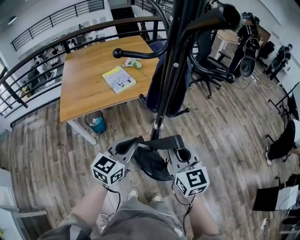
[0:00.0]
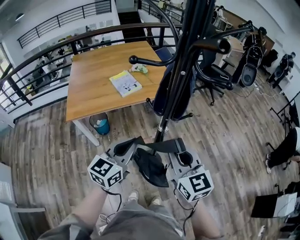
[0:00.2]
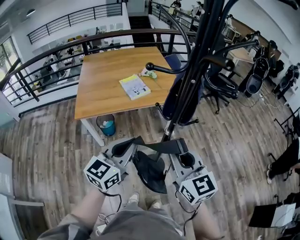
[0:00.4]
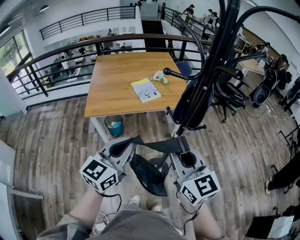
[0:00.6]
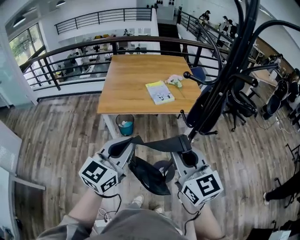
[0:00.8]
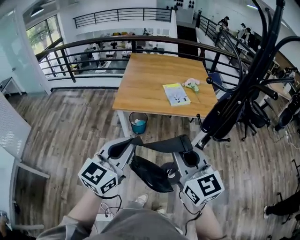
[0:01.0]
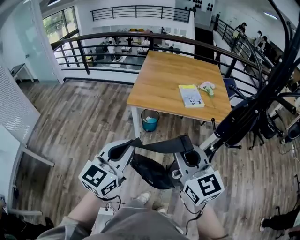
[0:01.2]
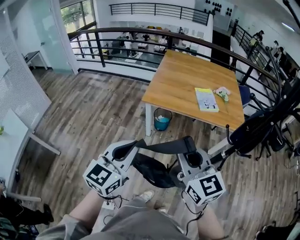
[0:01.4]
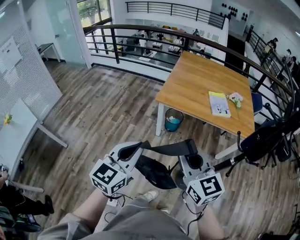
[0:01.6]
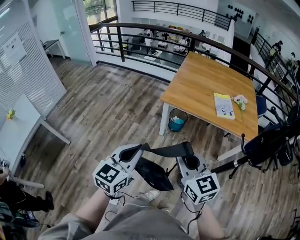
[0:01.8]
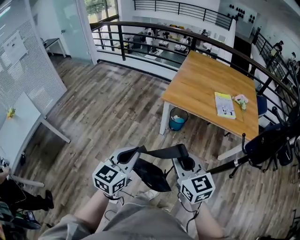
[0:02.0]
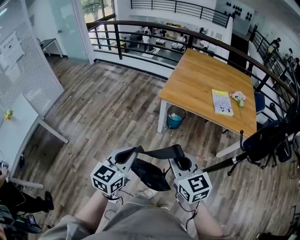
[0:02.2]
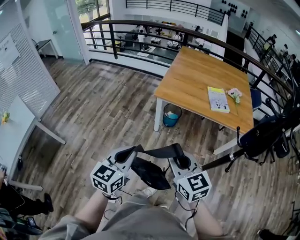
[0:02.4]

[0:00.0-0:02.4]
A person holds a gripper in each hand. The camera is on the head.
0:00.0 to 0:01.2: The left gripper moves some 30 cm, and changes its angle by approximately 40 degrees. The right gripper changes place by about 25 cm, and changes its angle by roughly 40 degrees.
0:01.2 to 0:02.4: Both grippers move downward and to the left, about 15 cm. The left gripper turns by roughly 20 degrees.

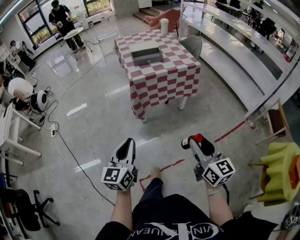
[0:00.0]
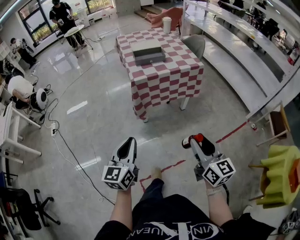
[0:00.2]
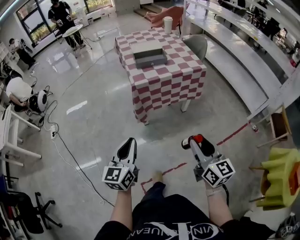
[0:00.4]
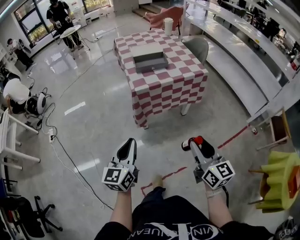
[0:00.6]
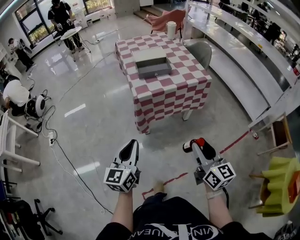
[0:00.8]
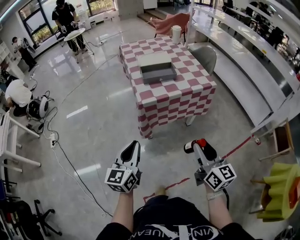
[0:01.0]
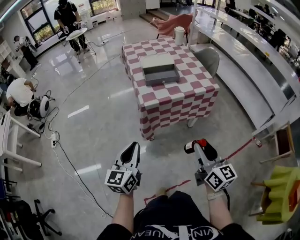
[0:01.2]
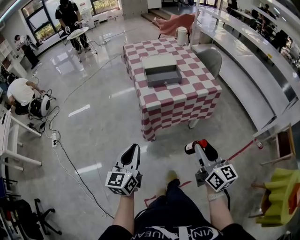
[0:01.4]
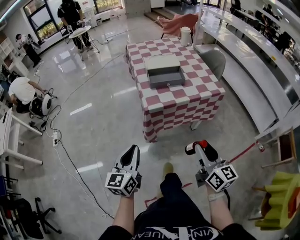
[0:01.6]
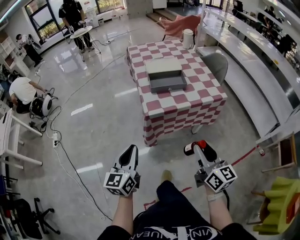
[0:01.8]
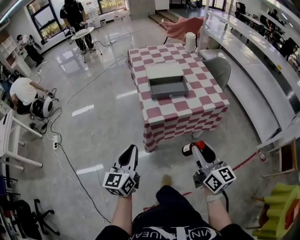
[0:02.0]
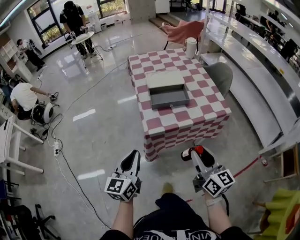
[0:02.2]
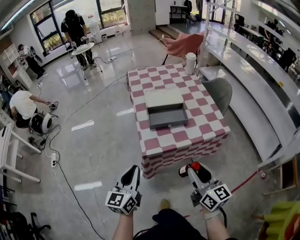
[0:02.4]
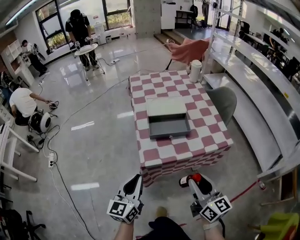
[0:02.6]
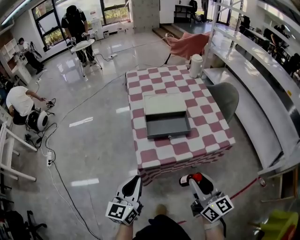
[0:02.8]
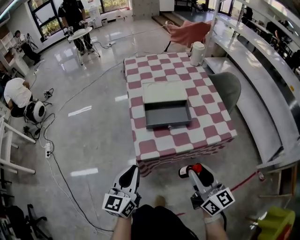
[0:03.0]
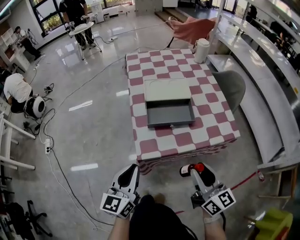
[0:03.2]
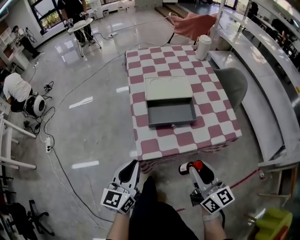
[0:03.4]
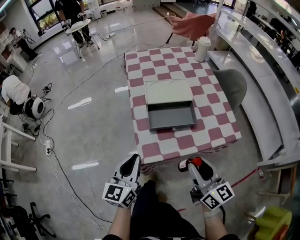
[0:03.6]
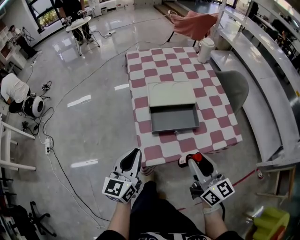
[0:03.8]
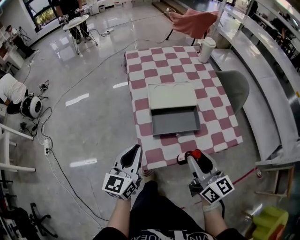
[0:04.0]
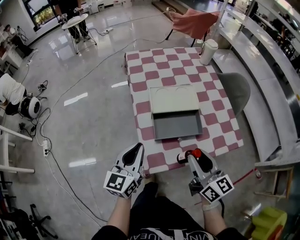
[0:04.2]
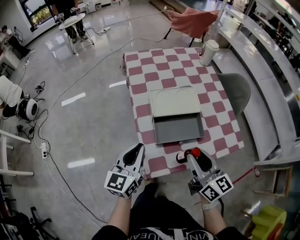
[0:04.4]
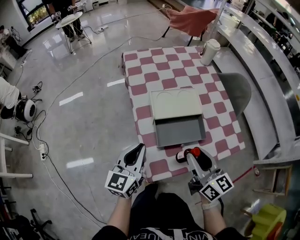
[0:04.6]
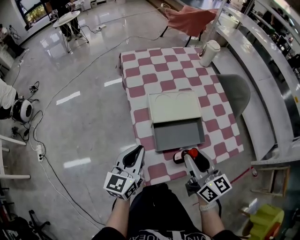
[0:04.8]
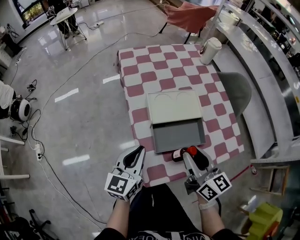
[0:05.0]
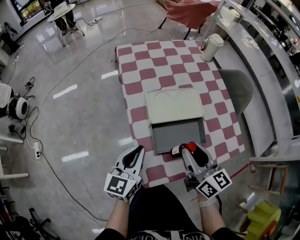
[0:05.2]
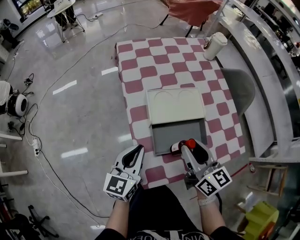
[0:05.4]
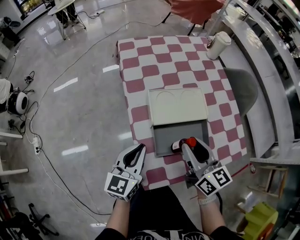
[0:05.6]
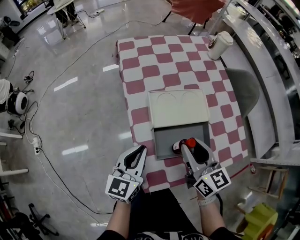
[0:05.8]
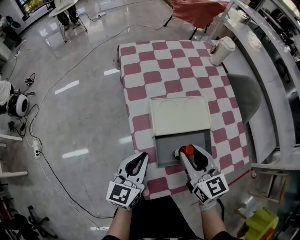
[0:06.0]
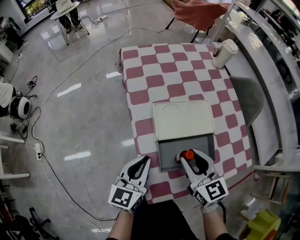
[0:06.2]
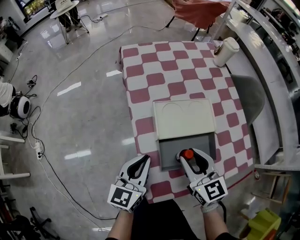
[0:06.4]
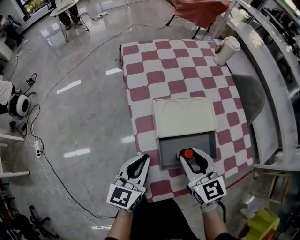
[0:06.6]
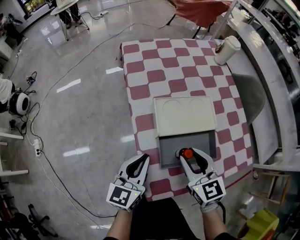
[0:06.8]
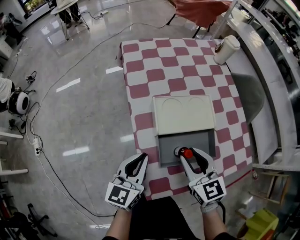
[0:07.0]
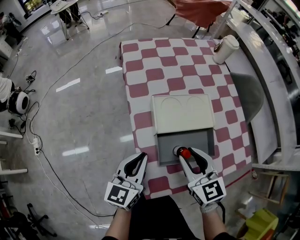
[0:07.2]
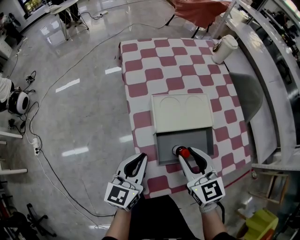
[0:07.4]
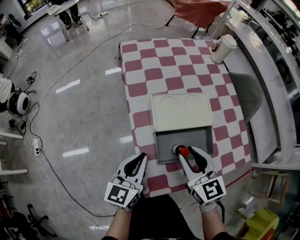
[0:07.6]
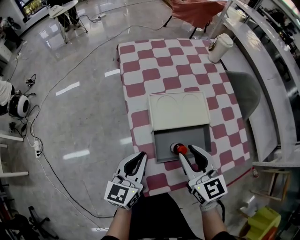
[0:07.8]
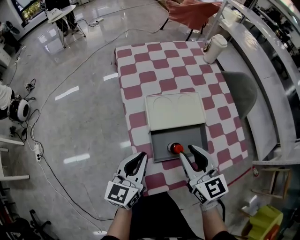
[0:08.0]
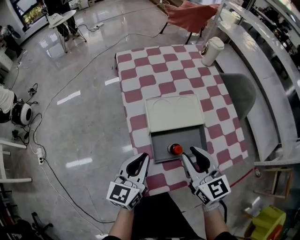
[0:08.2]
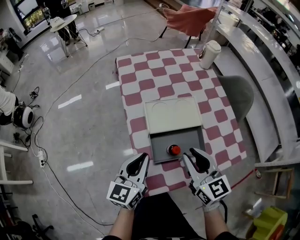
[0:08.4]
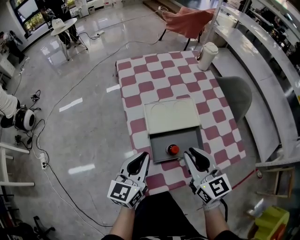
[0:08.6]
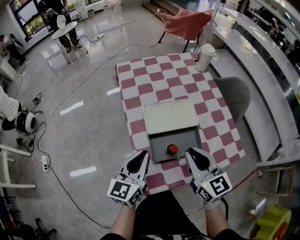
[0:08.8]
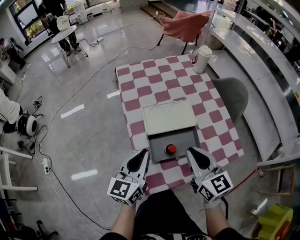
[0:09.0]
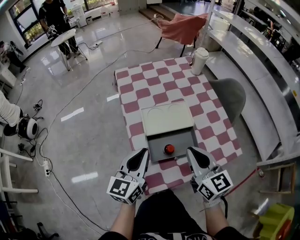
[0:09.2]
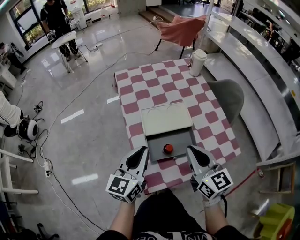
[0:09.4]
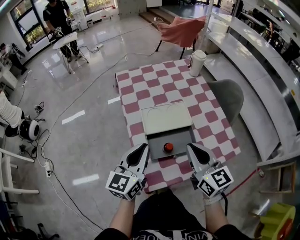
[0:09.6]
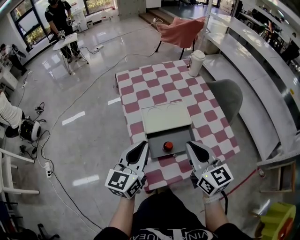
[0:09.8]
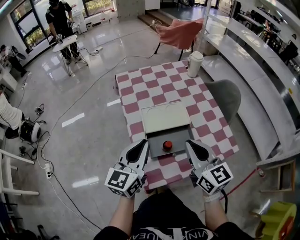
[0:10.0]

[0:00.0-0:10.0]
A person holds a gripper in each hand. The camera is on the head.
0:00.0 to 0:01.4: Both grippers move forward, roughly 25 cm.
0:01.4 to 0:02.8: The two grippers go about 20 cm forward.
0:02.8 to 0:04.2: Both grippers move forward, roughly 15 cm.
0:04.2 to 0:05.8: The right gripper shifts some 15 cm forward; the left gripper goes approximately 10 cm forward and downward.
0:05.8 to 0:07.2: The right gripper rotates roughly 20 degrees.
0:07.2 to 0:08.6: The two grippers go some 5 cm upward.
0:08.6 to 0:10.0: Both grippers move upward, roughly 10 cm.

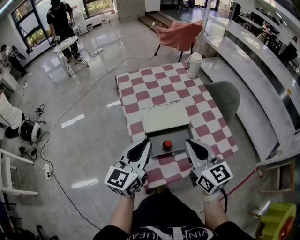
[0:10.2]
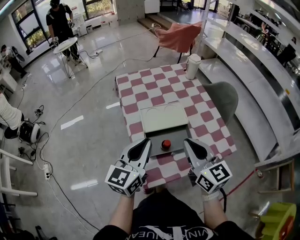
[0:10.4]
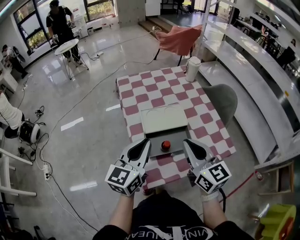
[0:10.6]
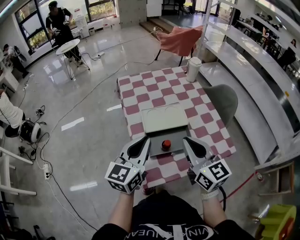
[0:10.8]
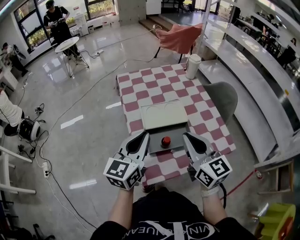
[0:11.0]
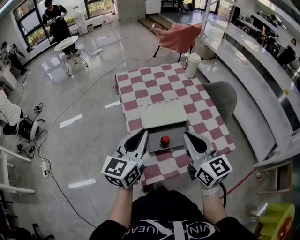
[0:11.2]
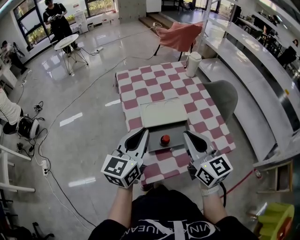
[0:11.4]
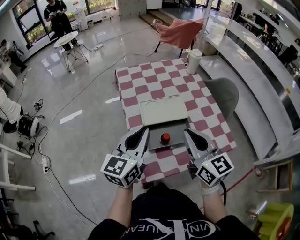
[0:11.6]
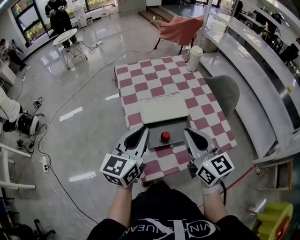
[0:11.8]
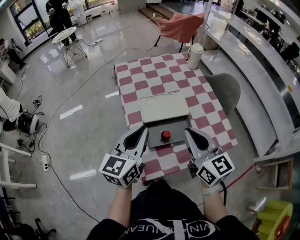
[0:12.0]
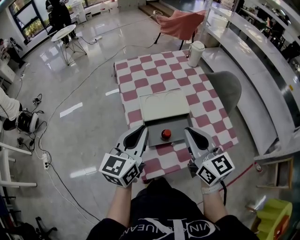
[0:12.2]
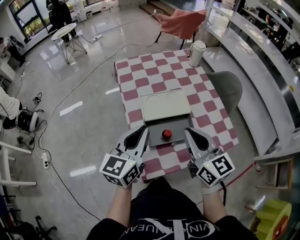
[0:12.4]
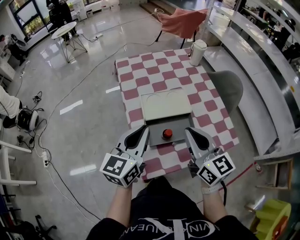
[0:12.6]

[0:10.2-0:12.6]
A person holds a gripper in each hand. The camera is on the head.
0:10.2 to 0:12.6: There are only small adjustments of the grippers.

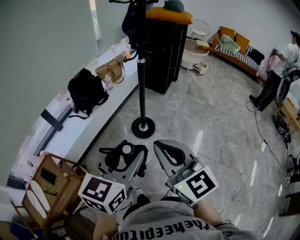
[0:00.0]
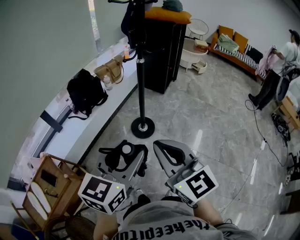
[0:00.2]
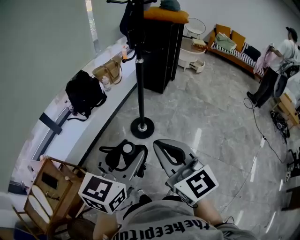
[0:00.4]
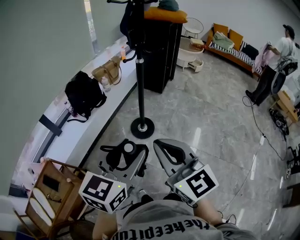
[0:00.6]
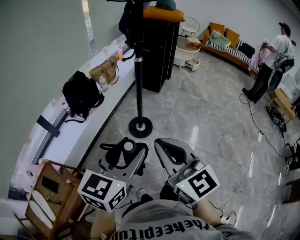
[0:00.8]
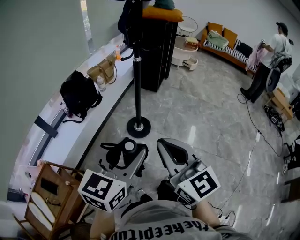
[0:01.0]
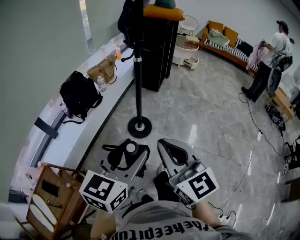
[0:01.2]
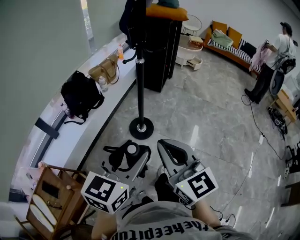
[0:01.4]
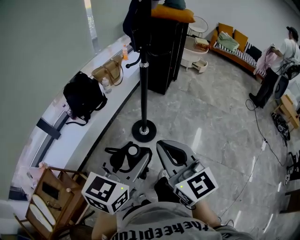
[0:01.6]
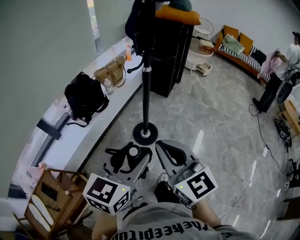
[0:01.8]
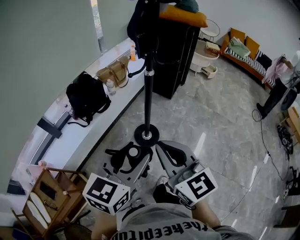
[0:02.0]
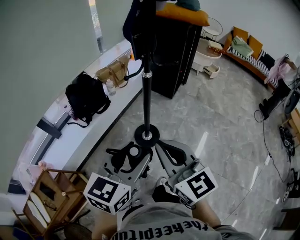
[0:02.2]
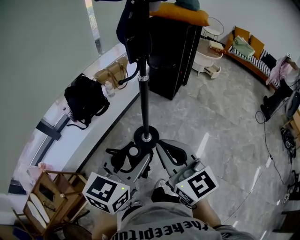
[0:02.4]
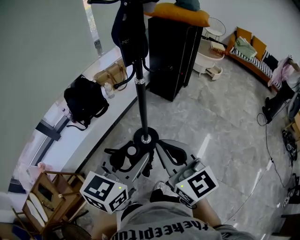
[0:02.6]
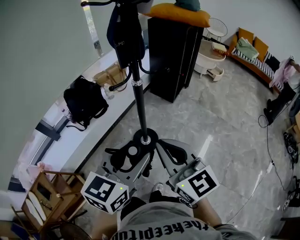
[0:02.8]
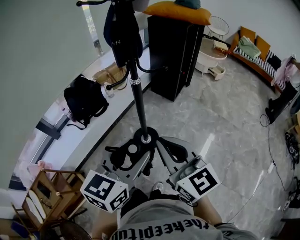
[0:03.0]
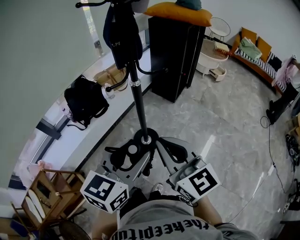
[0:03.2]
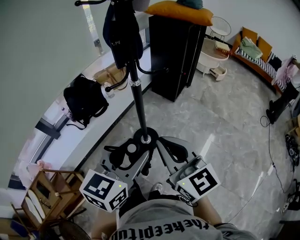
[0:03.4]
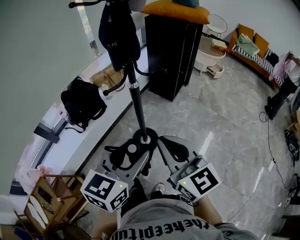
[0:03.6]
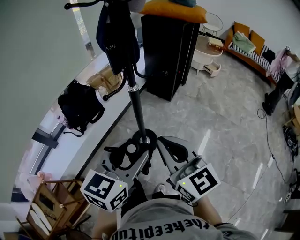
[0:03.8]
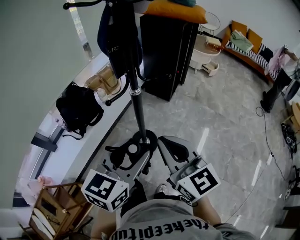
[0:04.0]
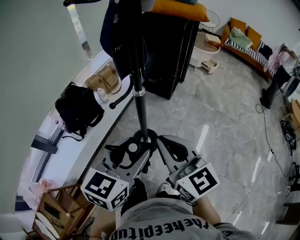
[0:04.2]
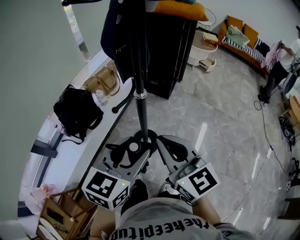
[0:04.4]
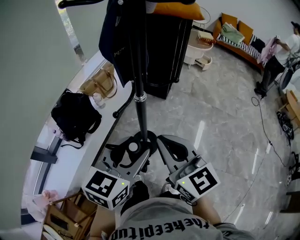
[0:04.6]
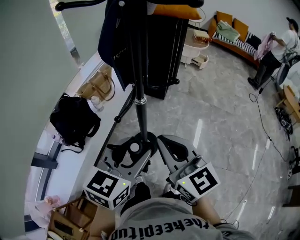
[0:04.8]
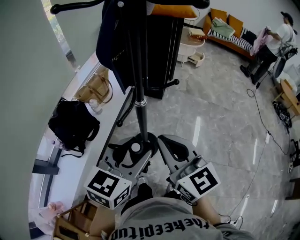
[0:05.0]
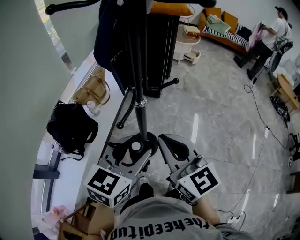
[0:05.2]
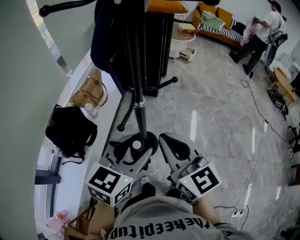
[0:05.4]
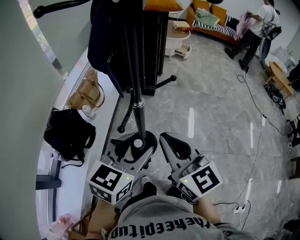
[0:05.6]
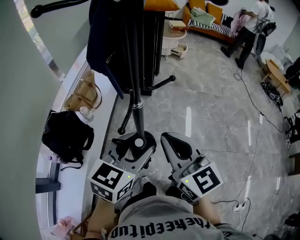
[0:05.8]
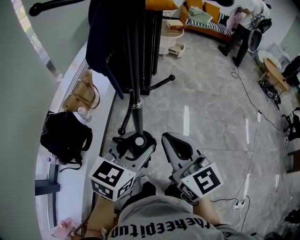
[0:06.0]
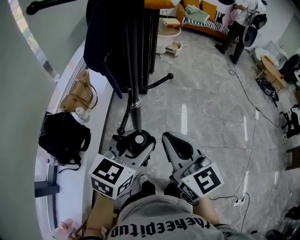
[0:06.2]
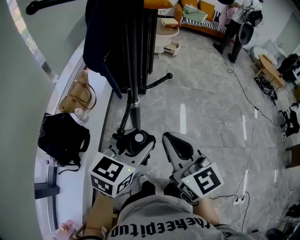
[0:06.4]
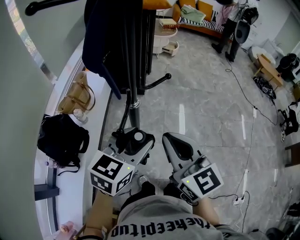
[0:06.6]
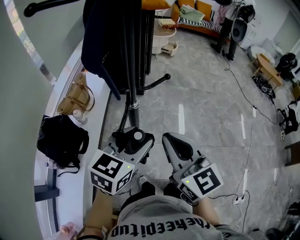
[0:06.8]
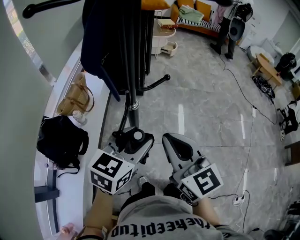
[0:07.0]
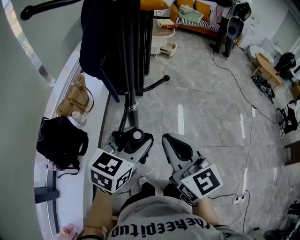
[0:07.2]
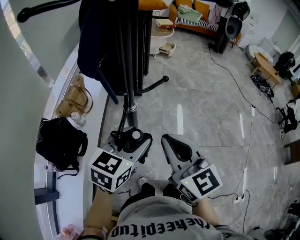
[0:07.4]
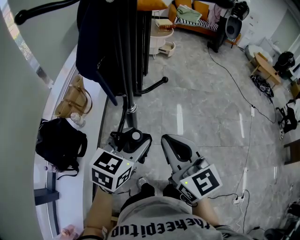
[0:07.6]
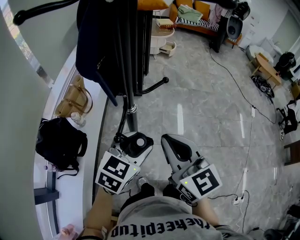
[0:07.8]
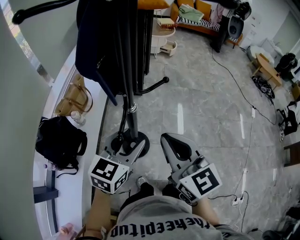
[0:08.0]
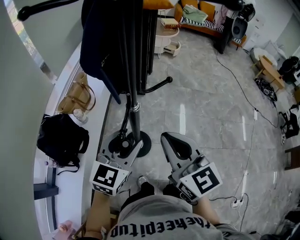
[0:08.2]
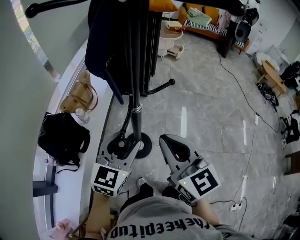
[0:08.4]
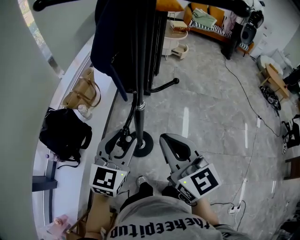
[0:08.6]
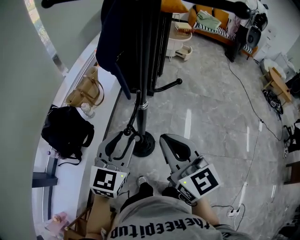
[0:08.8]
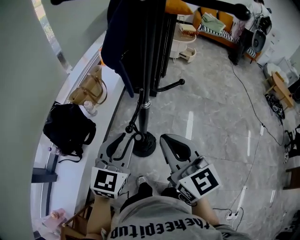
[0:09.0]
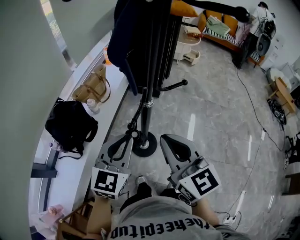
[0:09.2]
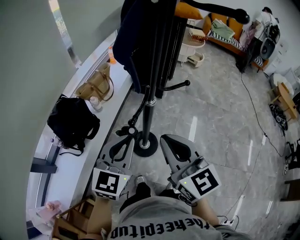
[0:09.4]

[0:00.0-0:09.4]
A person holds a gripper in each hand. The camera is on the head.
0:00.0 to 0:01.6: Both grippers move forward, about 10 cm.
0:01.6 to 0:03.2: Both grippers move forward and to the right, some 20 cm.
0:03.2 to 0:04.8: Both grippers travel together forward and to the left, roughly 15 cm.
0:04.8 to 0:06.2: The left gripper changes place by approximately 5 cm.
0:06.2 to 0:07.8: The grippers move only a little.
0:07.8 to 0:09.4: The left gripper travels to the left by approximately 10 cm, swivels roughly 30 degrees, and closes.
